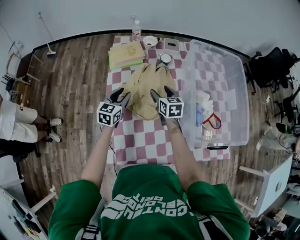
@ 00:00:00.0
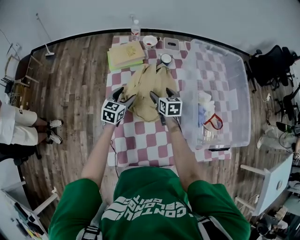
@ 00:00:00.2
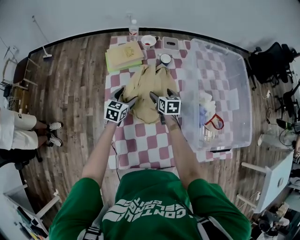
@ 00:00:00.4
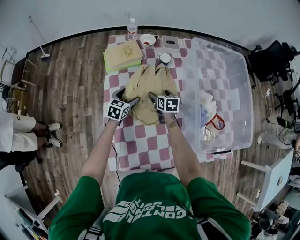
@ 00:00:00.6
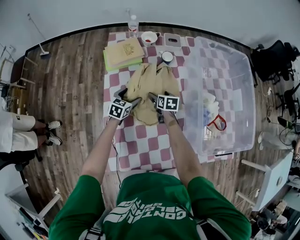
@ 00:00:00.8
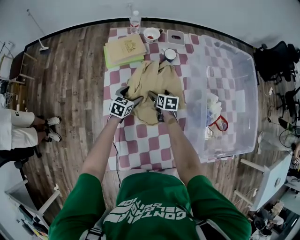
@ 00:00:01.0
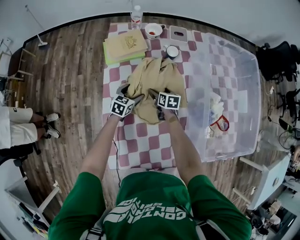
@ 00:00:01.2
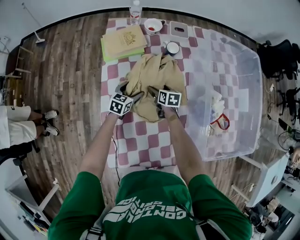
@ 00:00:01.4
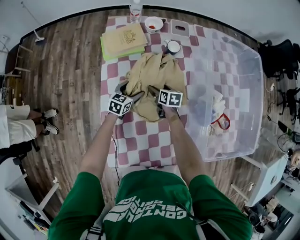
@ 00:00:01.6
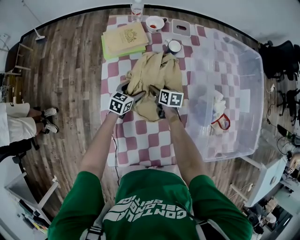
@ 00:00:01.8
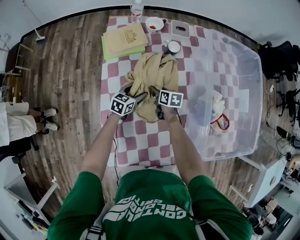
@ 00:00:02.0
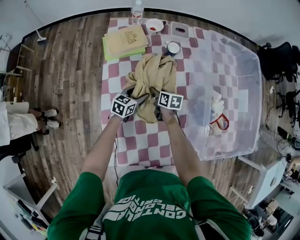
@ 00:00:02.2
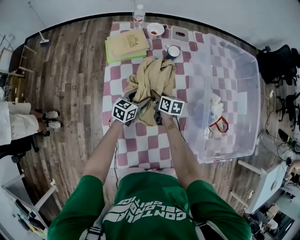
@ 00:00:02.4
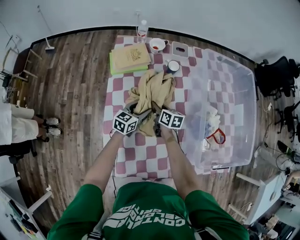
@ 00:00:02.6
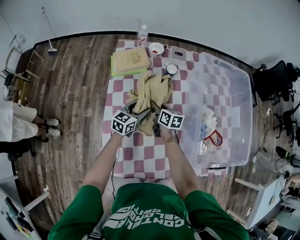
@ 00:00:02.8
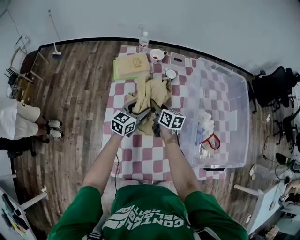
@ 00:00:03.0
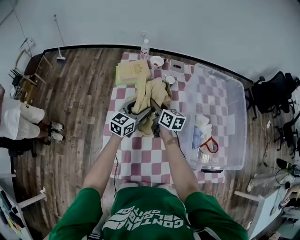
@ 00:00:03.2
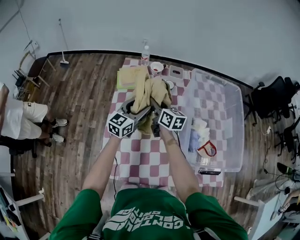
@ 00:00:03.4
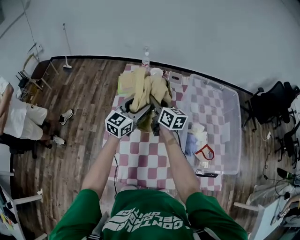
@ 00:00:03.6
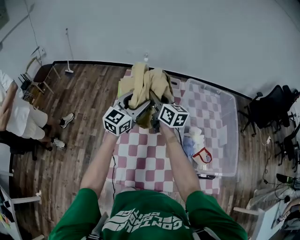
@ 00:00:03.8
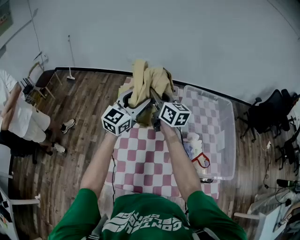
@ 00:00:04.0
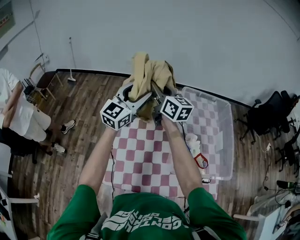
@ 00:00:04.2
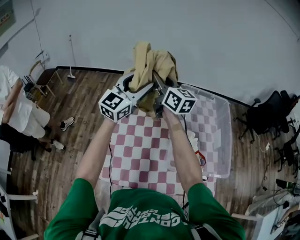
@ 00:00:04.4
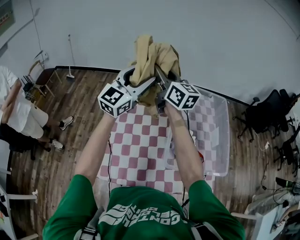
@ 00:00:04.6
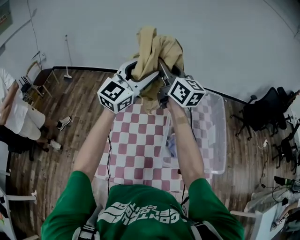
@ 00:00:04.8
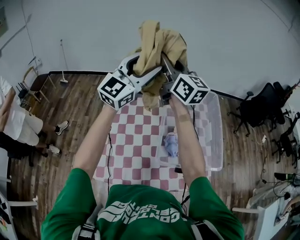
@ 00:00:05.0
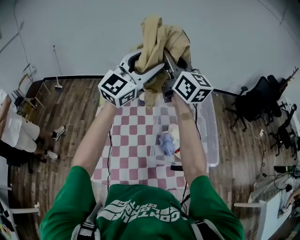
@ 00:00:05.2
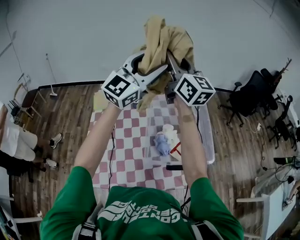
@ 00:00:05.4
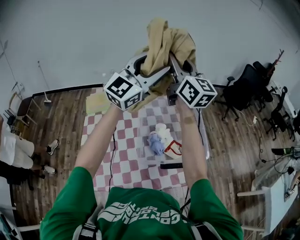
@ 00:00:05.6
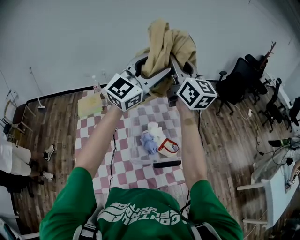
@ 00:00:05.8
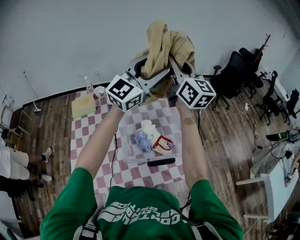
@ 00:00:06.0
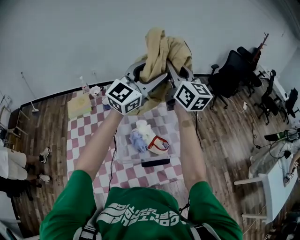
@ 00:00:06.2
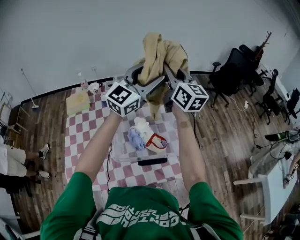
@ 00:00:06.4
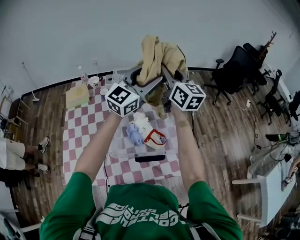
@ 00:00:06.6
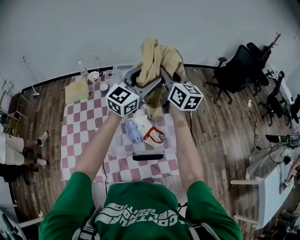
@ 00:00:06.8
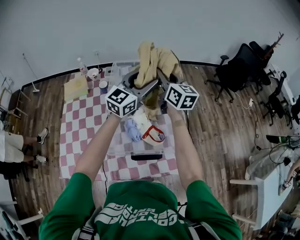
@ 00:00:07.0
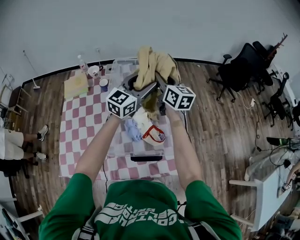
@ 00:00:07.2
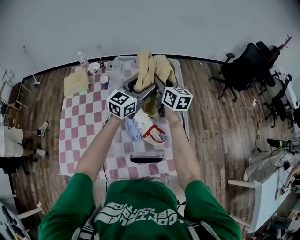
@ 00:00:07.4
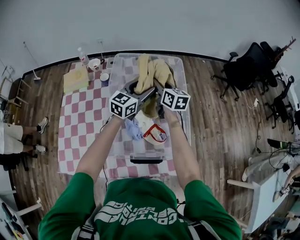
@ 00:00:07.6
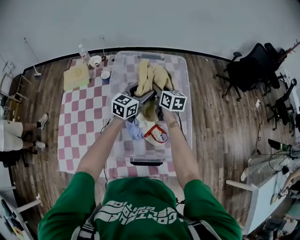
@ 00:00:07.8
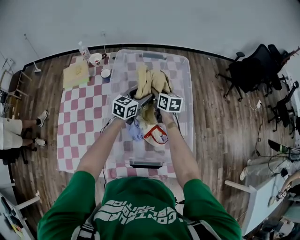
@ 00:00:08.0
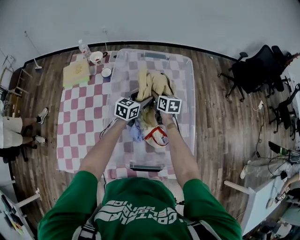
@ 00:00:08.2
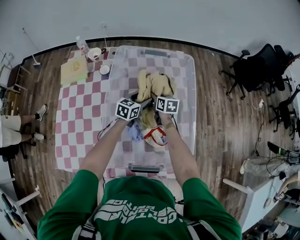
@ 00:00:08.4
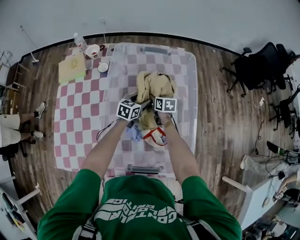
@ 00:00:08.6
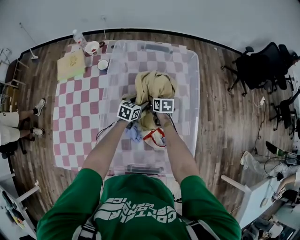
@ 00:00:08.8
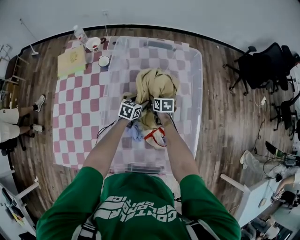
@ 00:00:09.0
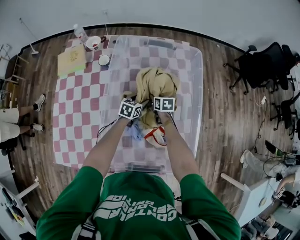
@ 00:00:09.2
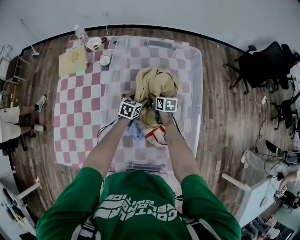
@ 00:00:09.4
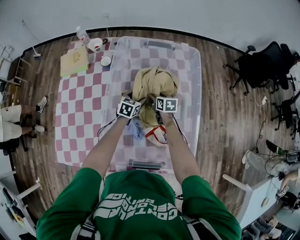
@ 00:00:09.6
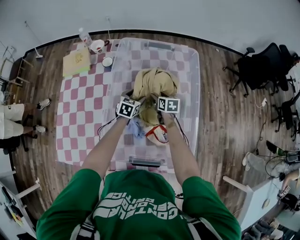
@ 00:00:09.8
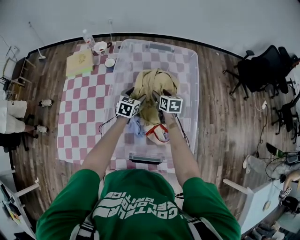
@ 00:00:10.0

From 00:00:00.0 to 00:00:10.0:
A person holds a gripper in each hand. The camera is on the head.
From 00:00:00.0 to 00:00:01.4: The right gripper travels downward by about 20 cm, and rotates about 20 degrees; the left gripper shifts roughly 20 cm downward and forward, and opens up.
From 00:00:01.4 to 00:00:02.8: The two grippers go some 10 cm upward. The right gripper closes its fingers.
From 00:00:02.8 to 00:00:04.2: Both grippers move upward, roughly 40 cm. The left gripper swivels about 40 degrees, while the right gripper angles its fingers upward, by roughly 30 degrees.
From 00:00:04.2 to 00:00:05.8: The left gripper shifts by roughly 35 cm, and changes its angle by about 30 degrees. Meanwhile the right gripper shifts by about 40 cm, and rotates about 30 degrees.
From 00:00:05.8 to 00:00:07.2: The left gripper travels downward and forward by some 25 cm, and changes its angle by roughly 30 degrees, while the right gripper goes approximately 25 cm downward, and changes its angle by about 30 degrees.
From 00:00:07.2 to 00:00:08.6: The grippers both shift downward by about 35 cm. The right gripper tilts its fingers some 40 degrees downward. The left gripper angles its fingers downward, by about 30 degrees.
From 00:00:08.6 to 00:00:10.0: The left gripper heads to the left, covering some 5 cm, and reaches approximately 5 cm downward, then returns; the right gripper heads upward, covering some 5 cm.

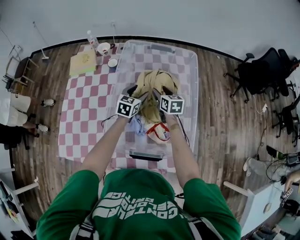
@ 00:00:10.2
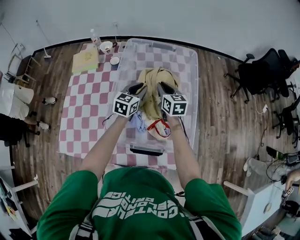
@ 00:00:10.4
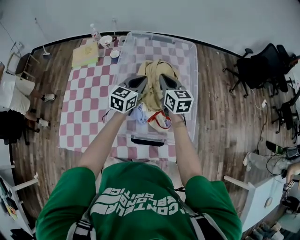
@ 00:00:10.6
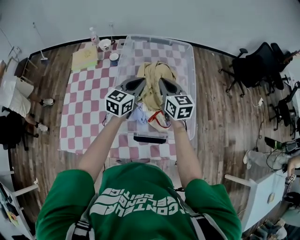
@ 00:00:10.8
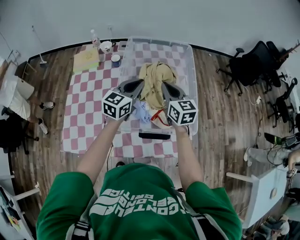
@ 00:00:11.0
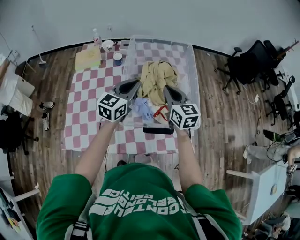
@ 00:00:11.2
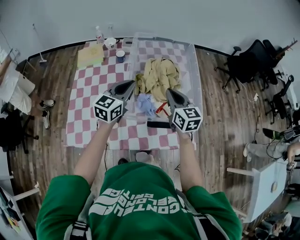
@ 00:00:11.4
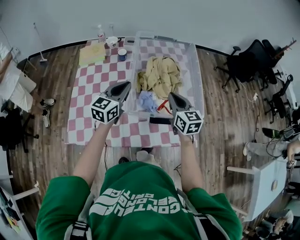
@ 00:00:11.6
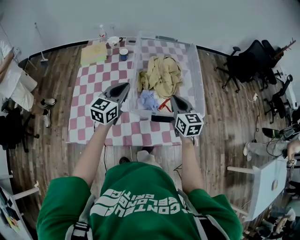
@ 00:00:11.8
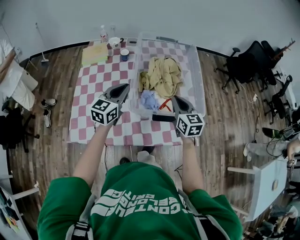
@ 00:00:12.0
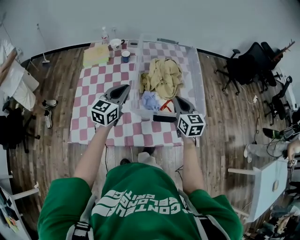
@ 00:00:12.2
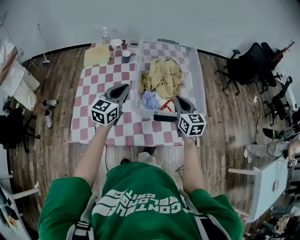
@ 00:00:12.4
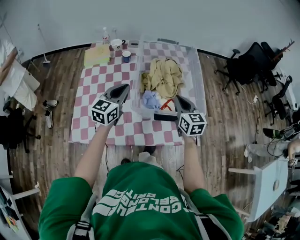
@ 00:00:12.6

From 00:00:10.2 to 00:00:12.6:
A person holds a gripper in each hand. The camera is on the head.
From 00:00:10.2 to 00:00:11.4: The left gripper is displaced backward, upward and to the left by some 30 cm, changes its angle by about 20 degrees, and closes up; the right gripper goes about 30 cm backward and upward, and closes its fingers.
From 00:00:11.4 to 00:00:12.6: The left gripper moves backward and to the left, about 10 cm. The right gripper heads backward, covering about 5 cm.

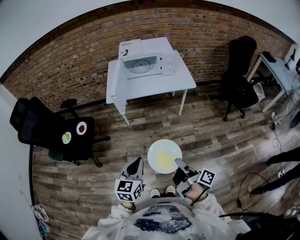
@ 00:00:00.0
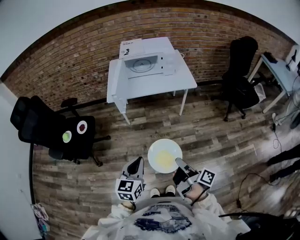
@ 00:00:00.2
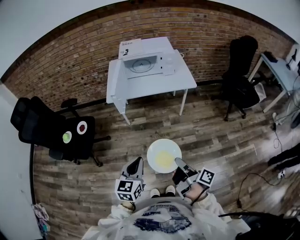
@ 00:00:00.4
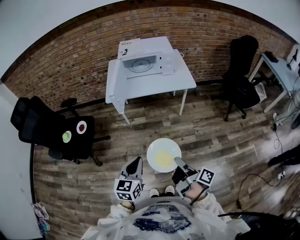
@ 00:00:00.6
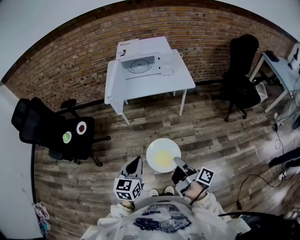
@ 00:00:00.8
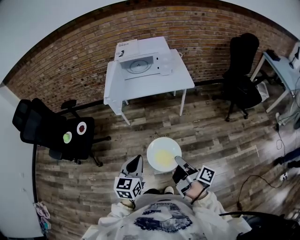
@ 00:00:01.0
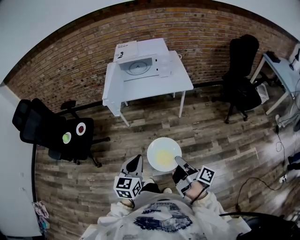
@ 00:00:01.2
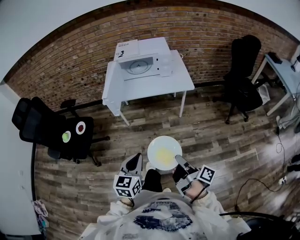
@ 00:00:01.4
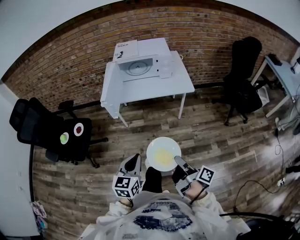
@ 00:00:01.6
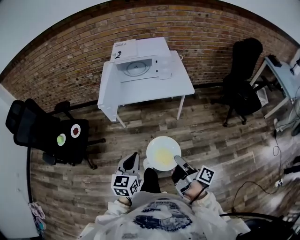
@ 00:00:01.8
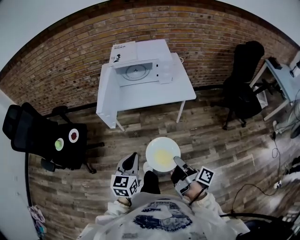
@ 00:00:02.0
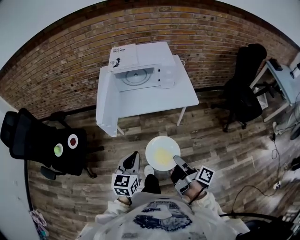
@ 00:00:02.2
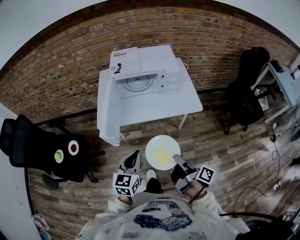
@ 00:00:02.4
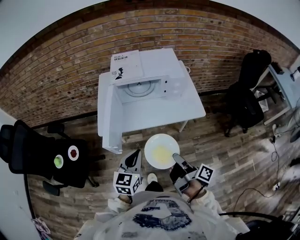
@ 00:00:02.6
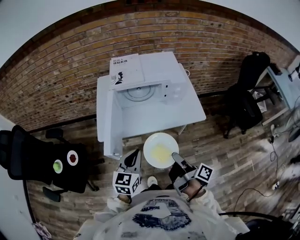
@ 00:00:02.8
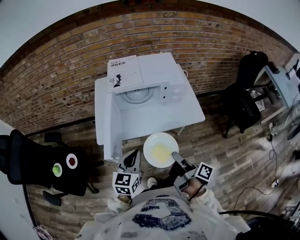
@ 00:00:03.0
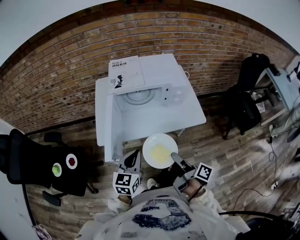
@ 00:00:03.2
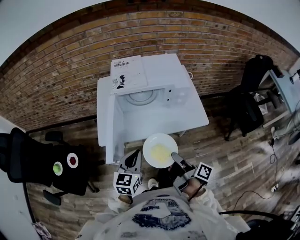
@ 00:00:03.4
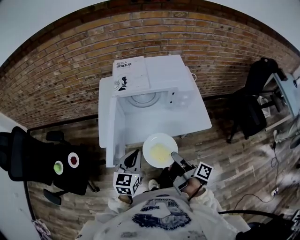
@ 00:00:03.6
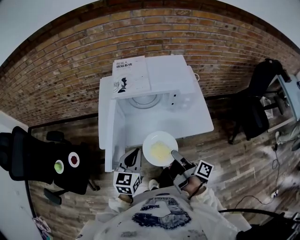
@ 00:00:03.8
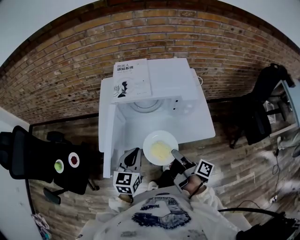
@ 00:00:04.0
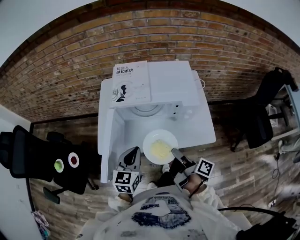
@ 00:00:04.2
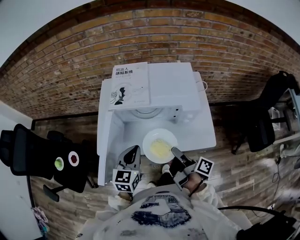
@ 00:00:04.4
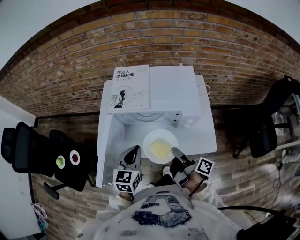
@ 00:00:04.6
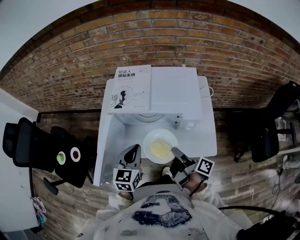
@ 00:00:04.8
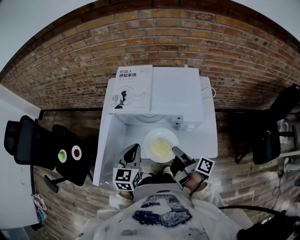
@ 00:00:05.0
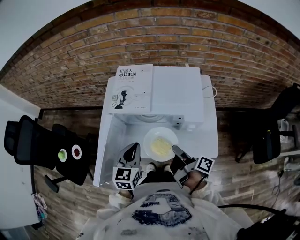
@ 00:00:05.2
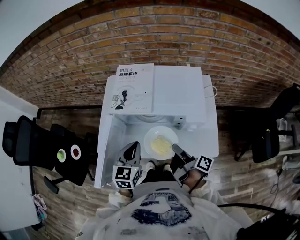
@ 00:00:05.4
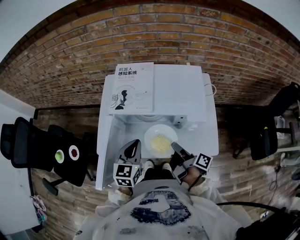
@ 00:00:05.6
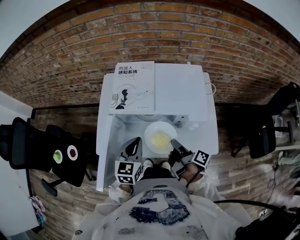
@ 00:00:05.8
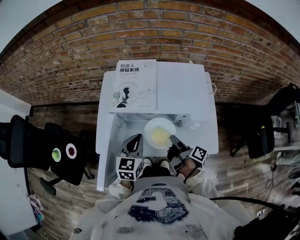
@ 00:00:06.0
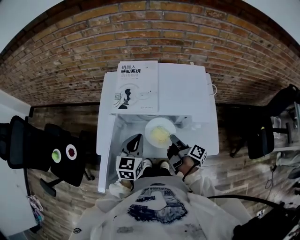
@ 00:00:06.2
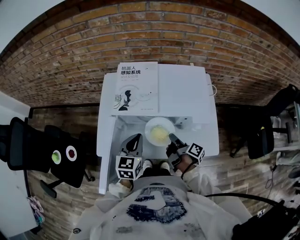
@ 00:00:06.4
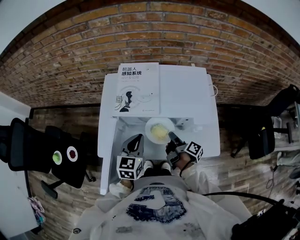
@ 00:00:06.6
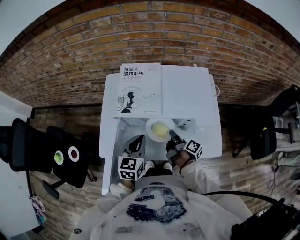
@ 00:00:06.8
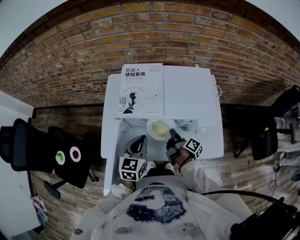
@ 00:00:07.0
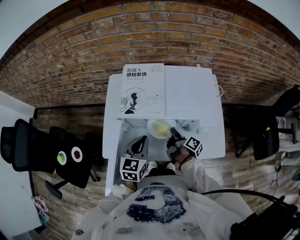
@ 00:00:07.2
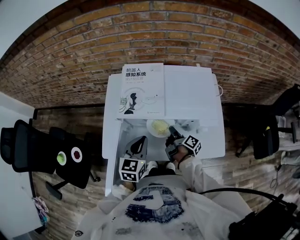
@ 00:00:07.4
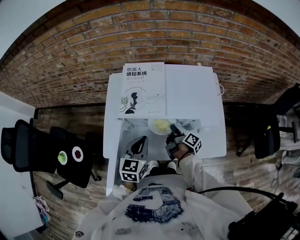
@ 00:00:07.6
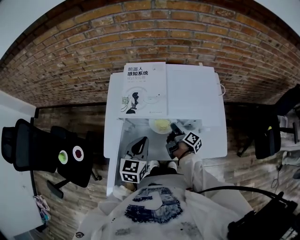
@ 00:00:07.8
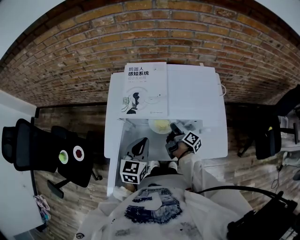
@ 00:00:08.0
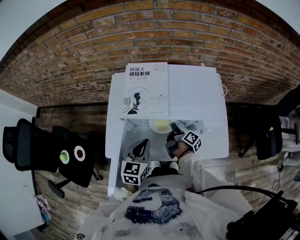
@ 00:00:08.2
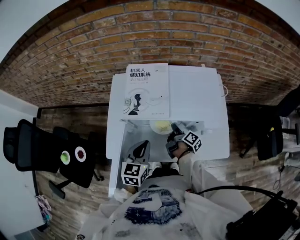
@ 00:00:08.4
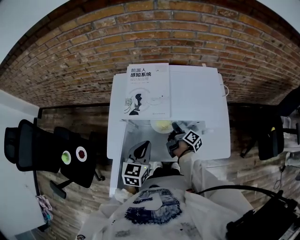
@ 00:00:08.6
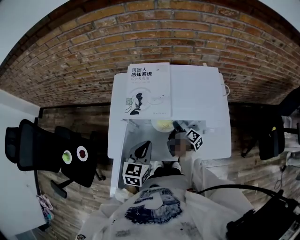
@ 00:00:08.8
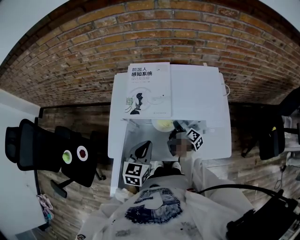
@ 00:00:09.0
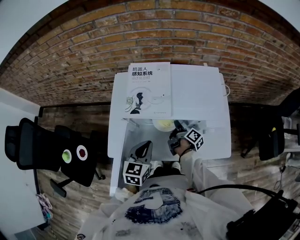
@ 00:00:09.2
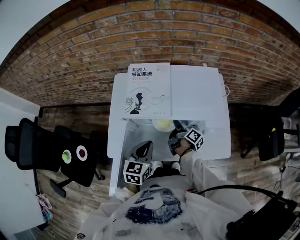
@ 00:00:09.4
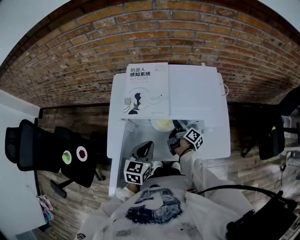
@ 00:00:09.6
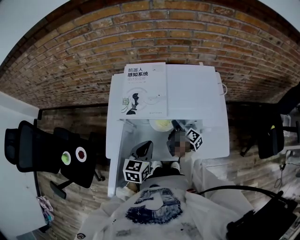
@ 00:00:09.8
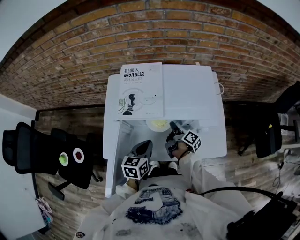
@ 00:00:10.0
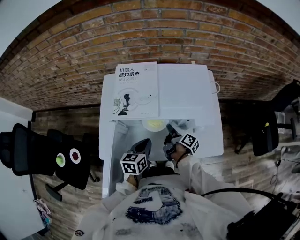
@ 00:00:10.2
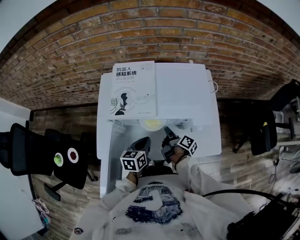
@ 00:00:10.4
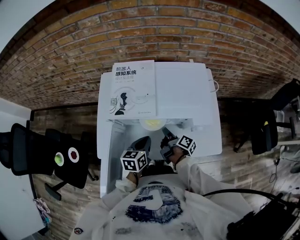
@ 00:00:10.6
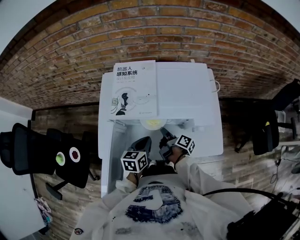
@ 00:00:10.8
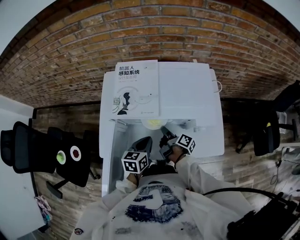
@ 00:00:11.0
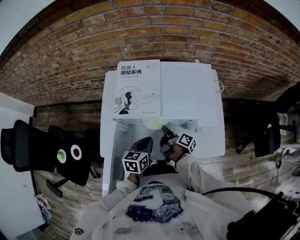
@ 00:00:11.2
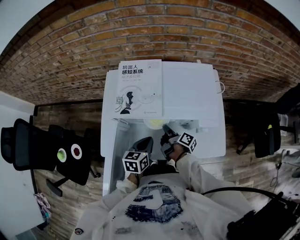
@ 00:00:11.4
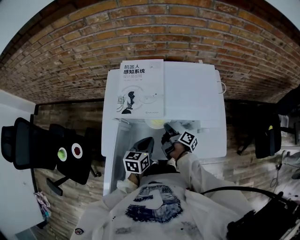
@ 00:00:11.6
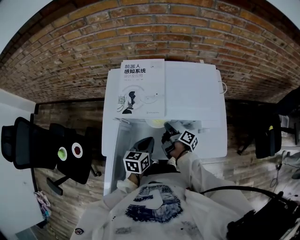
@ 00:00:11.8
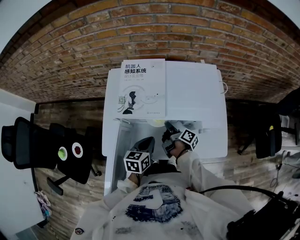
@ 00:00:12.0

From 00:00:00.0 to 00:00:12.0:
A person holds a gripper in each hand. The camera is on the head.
From 00:00:00.0 to 00:00:01.6: The left gripper ends up some 10 cm from where it was.
From 00:00:01.6 to 00:00:03.0: The left gripper ends up some 35 cm from where it was.
From 00:00:03.0 to 00:00:04.4: The left gripper moves approximately 15 cm.
From 00:00:04.4 to 00:00:06.0: The left gripper shifts by approximately 10 cm.
From 00:00:09.0 to 00:00:10.4: The left gripper travels downward by roughly 10 cm, and changes its angle by roughly 20 degrees.
